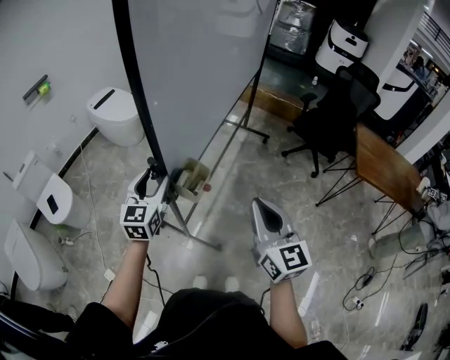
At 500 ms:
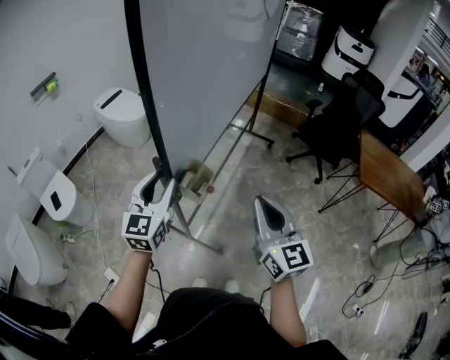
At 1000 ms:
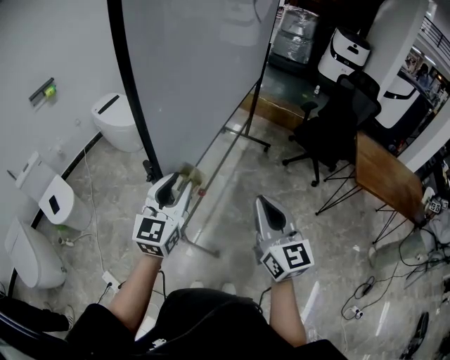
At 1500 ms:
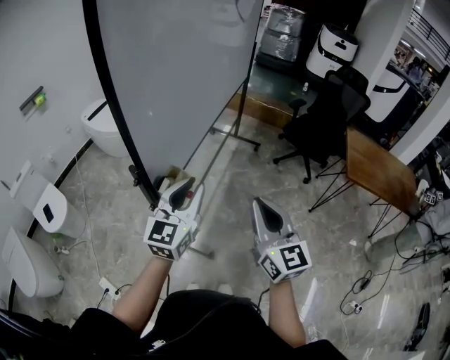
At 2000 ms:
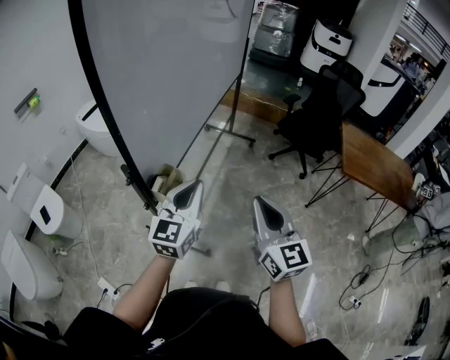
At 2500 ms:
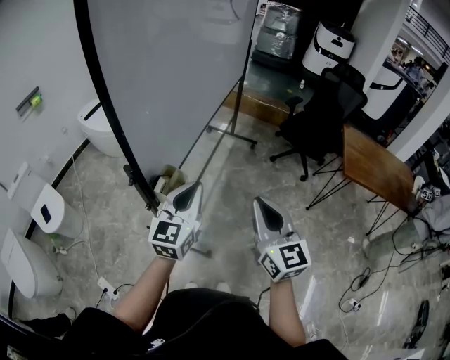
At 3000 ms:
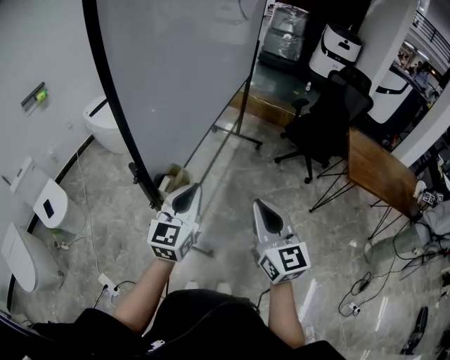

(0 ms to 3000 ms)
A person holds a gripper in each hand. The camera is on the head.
0 ms - 1500 ms: The right gripper heads to the right, covering approximately 5 cm. The left gripper heads to the right, covering roughly 20 cm, and closes.
1500 ms - 3000 ms: The grippers stay close to where they were, moving slightly.
